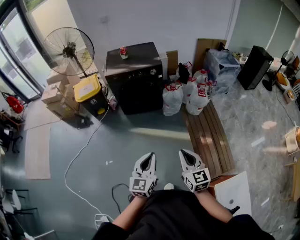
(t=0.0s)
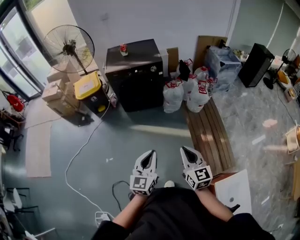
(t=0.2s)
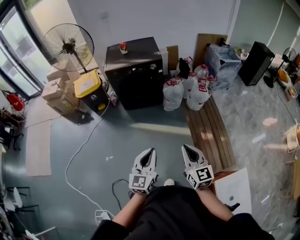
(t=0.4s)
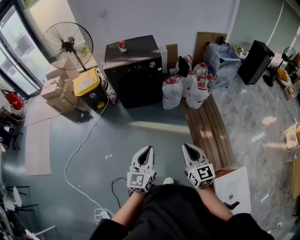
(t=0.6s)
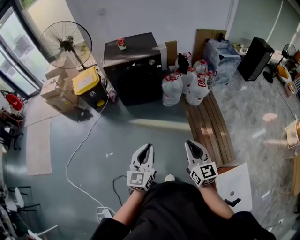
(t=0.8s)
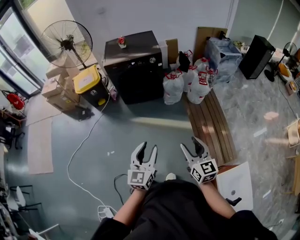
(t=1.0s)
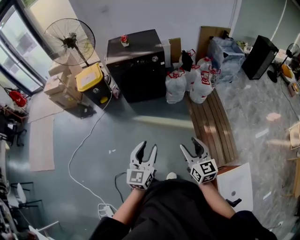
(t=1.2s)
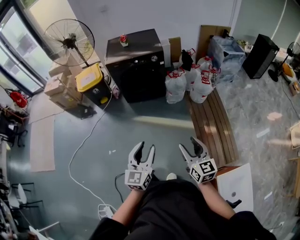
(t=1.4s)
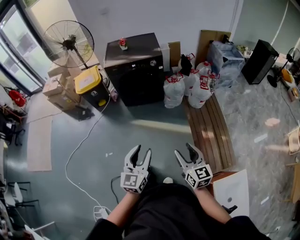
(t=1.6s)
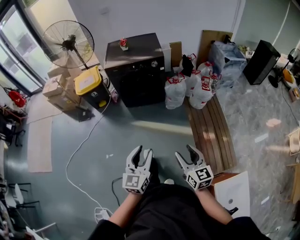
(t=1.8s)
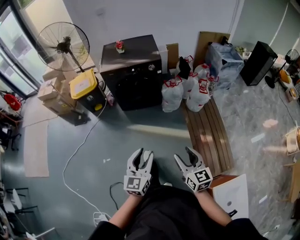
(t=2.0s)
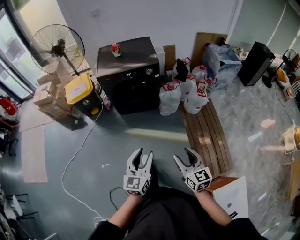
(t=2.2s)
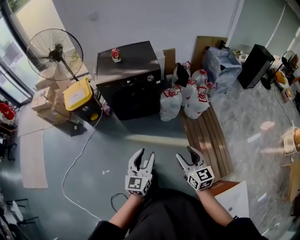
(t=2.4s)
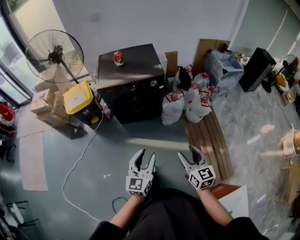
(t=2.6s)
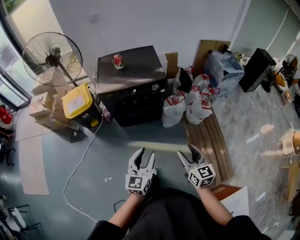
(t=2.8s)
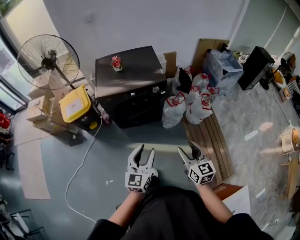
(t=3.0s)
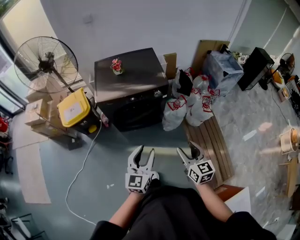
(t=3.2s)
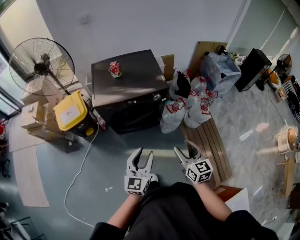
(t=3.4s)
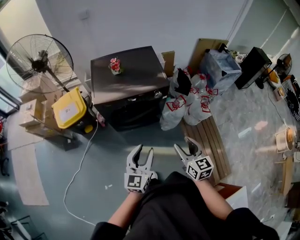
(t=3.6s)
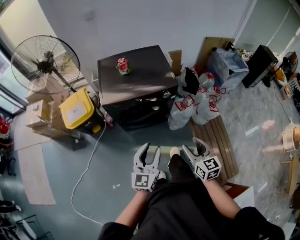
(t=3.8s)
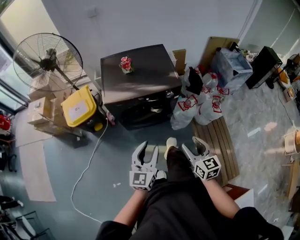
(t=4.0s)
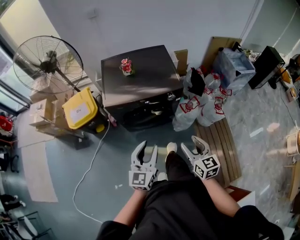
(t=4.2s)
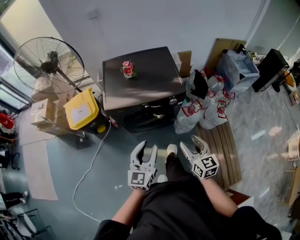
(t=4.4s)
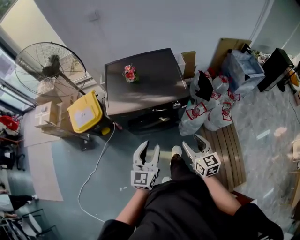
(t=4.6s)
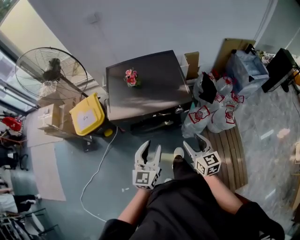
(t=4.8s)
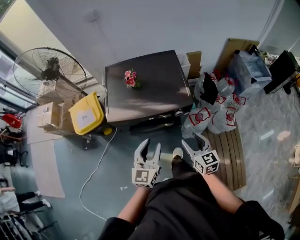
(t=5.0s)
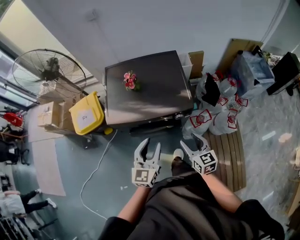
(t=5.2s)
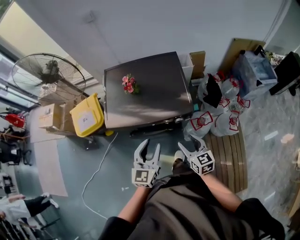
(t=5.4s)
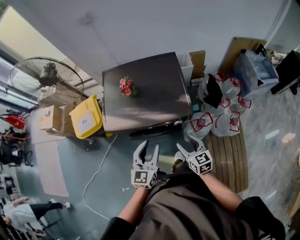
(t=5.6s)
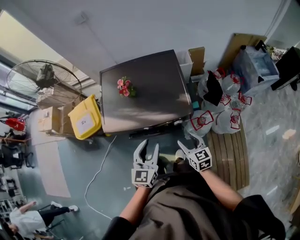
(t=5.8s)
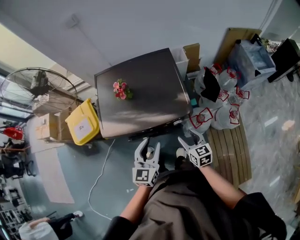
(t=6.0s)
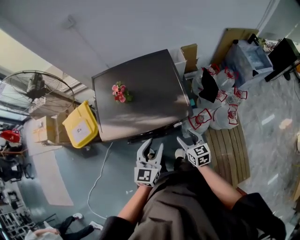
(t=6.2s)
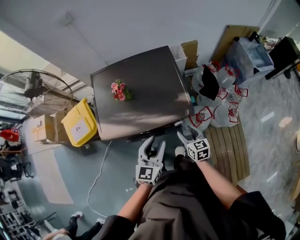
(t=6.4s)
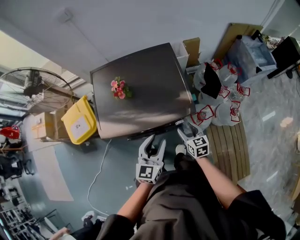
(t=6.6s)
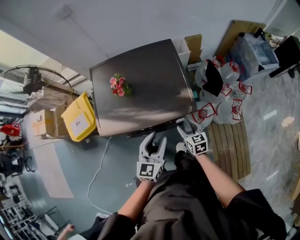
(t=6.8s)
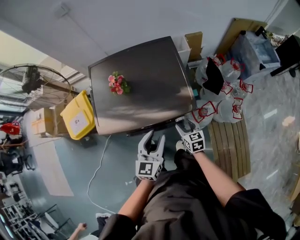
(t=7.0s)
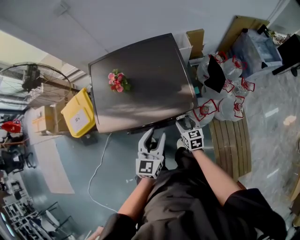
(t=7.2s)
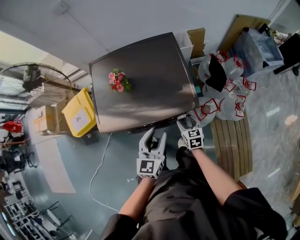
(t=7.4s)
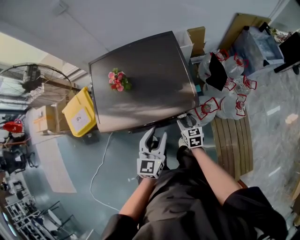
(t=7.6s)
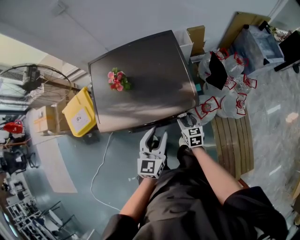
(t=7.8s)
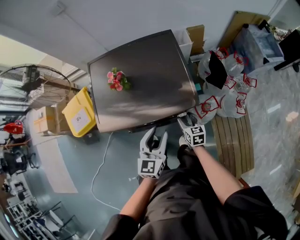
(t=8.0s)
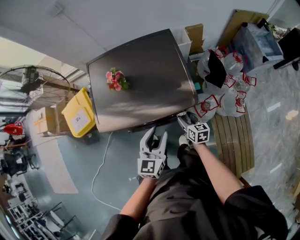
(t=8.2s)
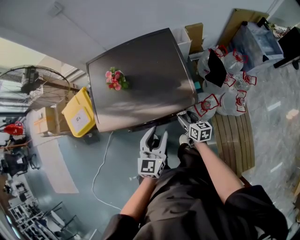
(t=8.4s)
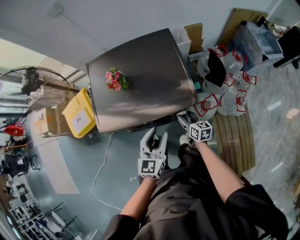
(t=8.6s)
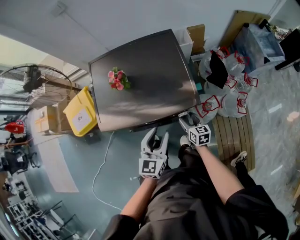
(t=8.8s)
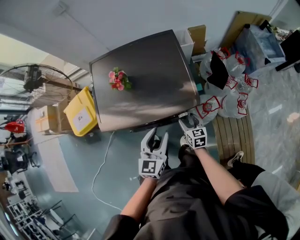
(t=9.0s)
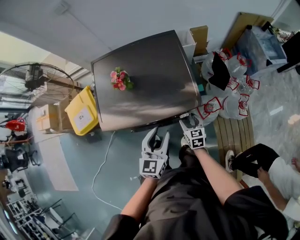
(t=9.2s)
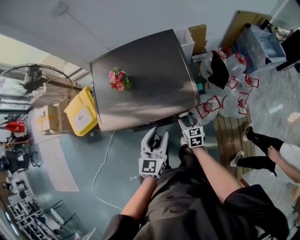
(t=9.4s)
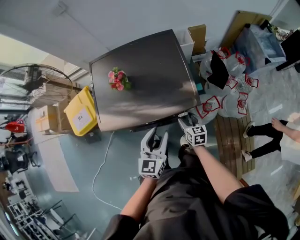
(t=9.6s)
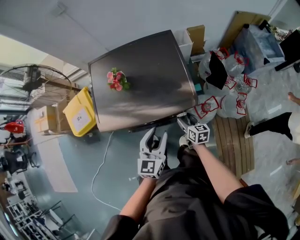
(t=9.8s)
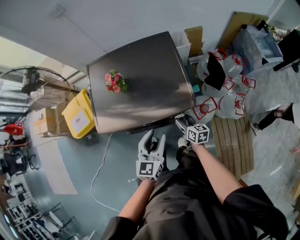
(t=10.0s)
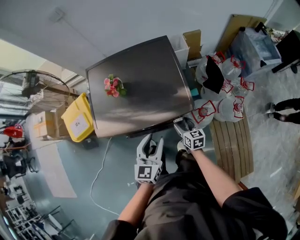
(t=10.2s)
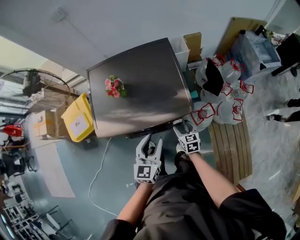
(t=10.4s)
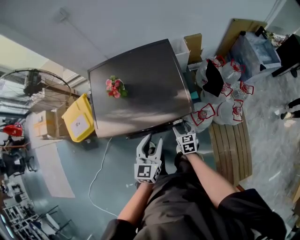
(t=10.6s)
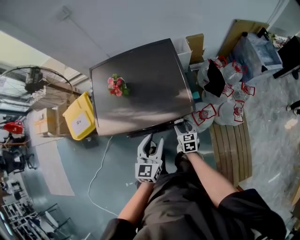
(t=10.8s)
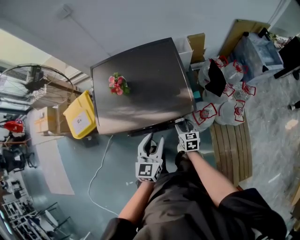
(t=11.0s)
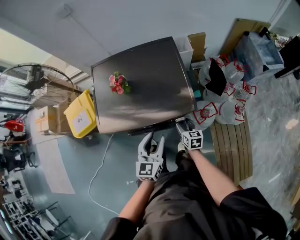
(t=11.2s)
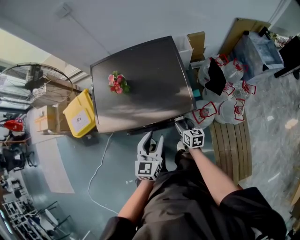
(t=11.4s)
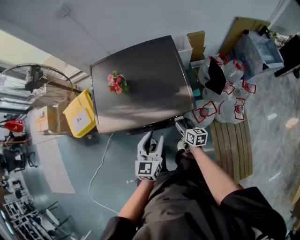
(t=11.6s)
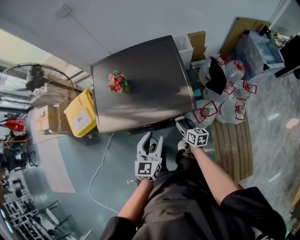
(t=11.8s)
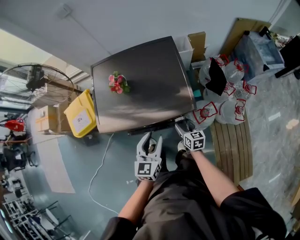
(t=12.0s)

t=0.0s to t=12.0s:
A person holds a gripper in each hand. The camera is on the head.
t=0.0s to t=1.6s: The left gripper opens. Meanwhile the right gripper opens its fingers.
t=1.6s to t=3.0s: Both grippers move forward, about 35 cm.
t=3.0s to t=4.4s: The left gripper travels forward and to the left by about 20 cm. Meanwhile the right gripper travels forward by approximately 20 cm.
t=4.4s to t=6.0s: The right gripper heads forward and downward, covering approximately 25 cm. Meanwhile the left gripper moves forward, about 20 cm.
t=6.0s to t=7.6s: The right gripper travels downward and forward by approximately 15 cm, while the left gripper goes about 5 cm downward.
t=9.0s to t=10.4s: The grippers move only a little.

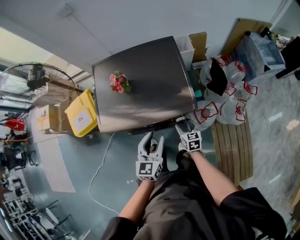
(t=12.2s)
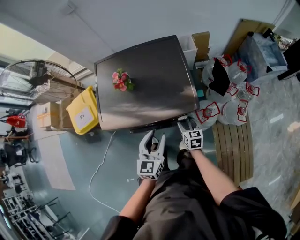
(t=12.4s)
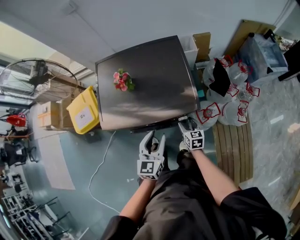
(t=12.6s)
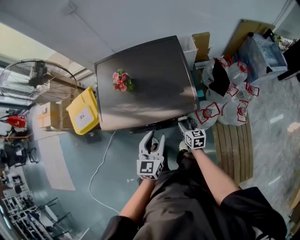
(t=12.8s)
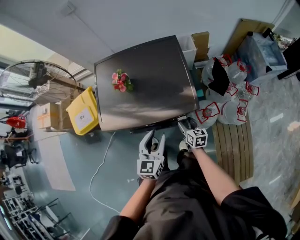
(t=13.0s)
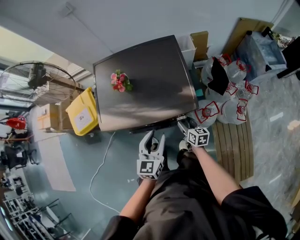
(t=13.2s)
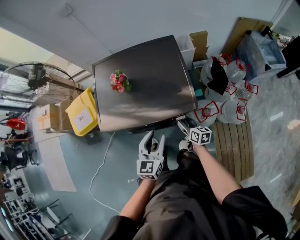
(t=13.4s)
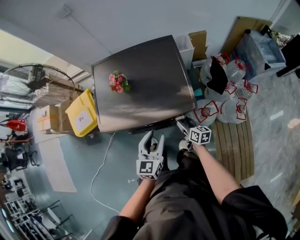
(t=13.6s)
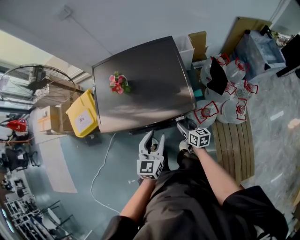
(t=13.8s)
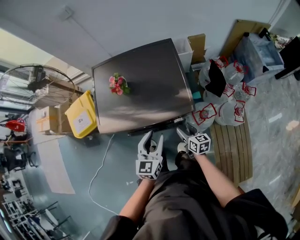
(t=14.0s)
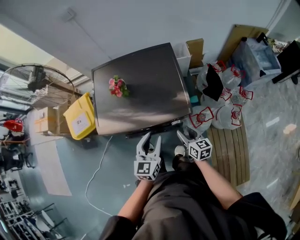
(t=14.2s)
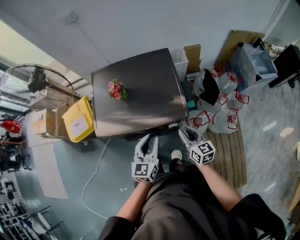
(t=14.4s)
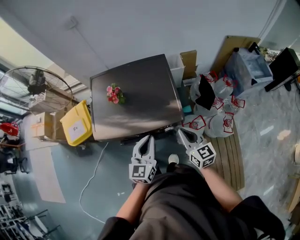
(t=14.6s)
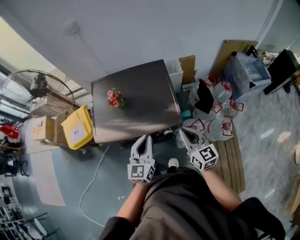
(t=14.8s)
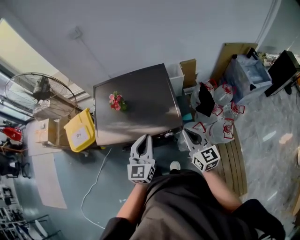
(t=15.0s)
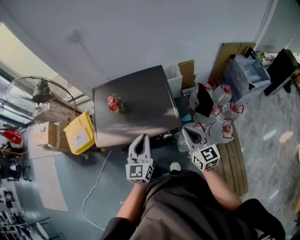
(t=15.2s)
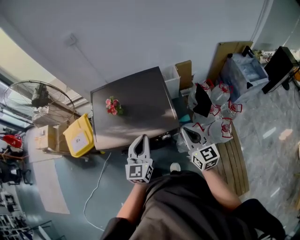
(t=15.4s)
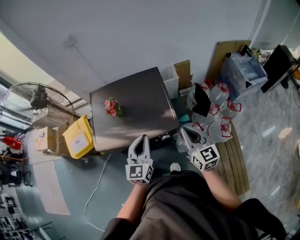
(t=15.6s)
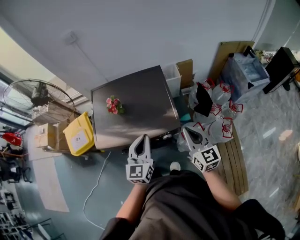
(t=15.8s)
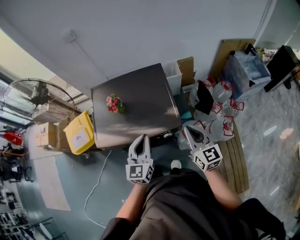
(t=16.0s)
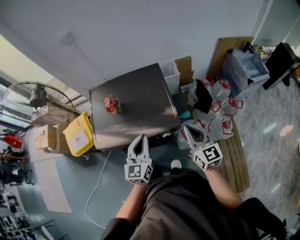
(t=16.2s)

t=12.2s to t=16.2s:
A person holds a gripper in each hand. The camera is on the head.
t=12.2s to t=13.6s: The right gripper rotates roughly 30 degrees.
t=13.6s to t=14.8s: The right gripper heads upward, covering roughly 30 cm, changes its angle by about 40 degrees, and closes; the left gripper travels upward by approximately 10 cm, and closes.
t=14.8s to t=16.2s: The right gripper ends up about 5 cm from where it was.

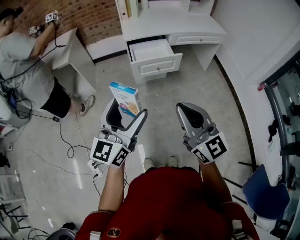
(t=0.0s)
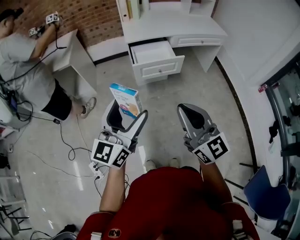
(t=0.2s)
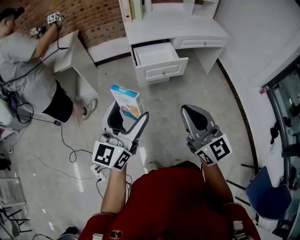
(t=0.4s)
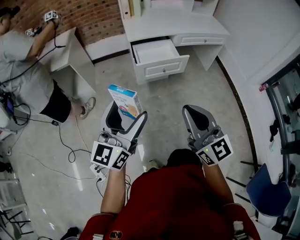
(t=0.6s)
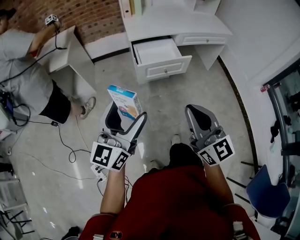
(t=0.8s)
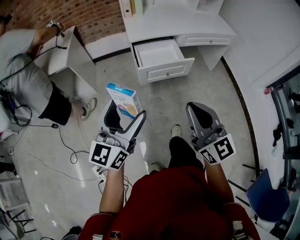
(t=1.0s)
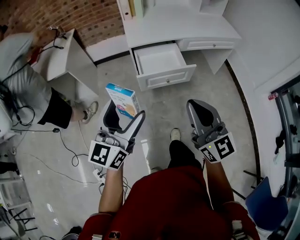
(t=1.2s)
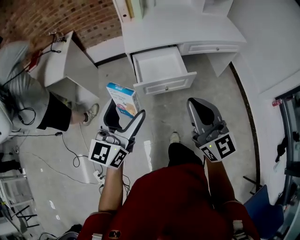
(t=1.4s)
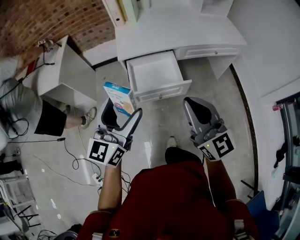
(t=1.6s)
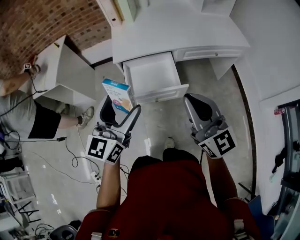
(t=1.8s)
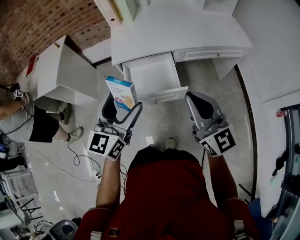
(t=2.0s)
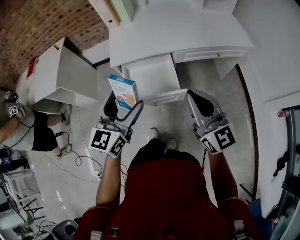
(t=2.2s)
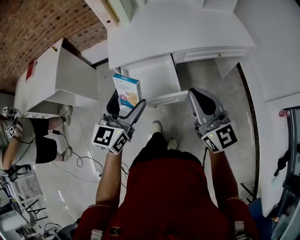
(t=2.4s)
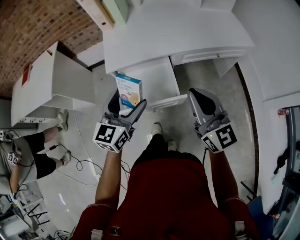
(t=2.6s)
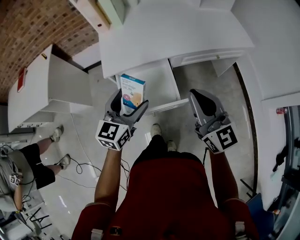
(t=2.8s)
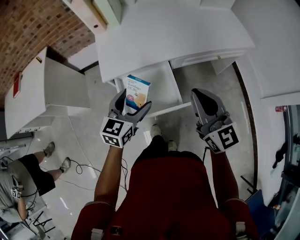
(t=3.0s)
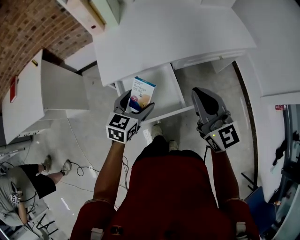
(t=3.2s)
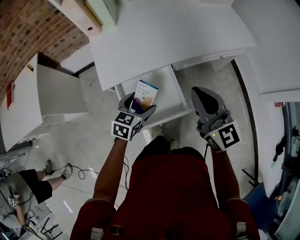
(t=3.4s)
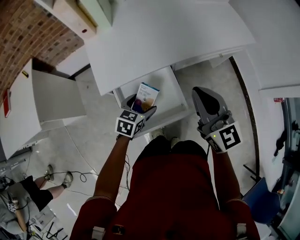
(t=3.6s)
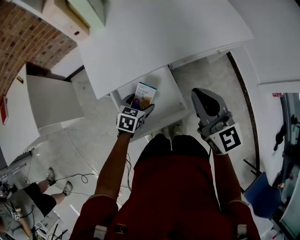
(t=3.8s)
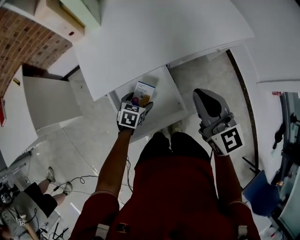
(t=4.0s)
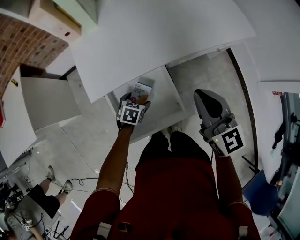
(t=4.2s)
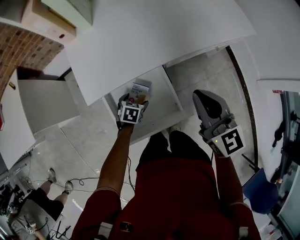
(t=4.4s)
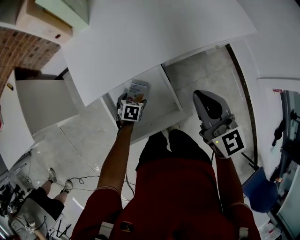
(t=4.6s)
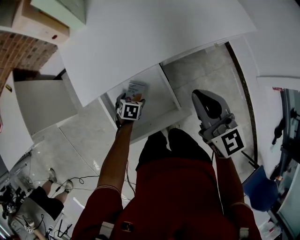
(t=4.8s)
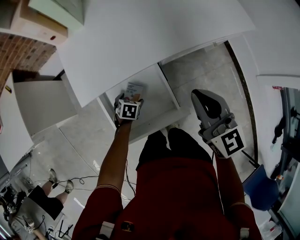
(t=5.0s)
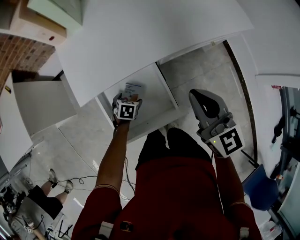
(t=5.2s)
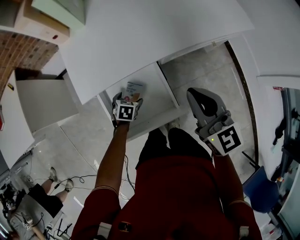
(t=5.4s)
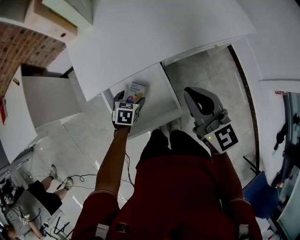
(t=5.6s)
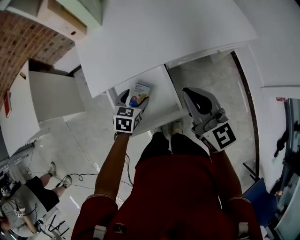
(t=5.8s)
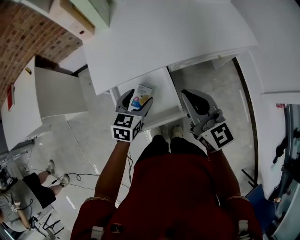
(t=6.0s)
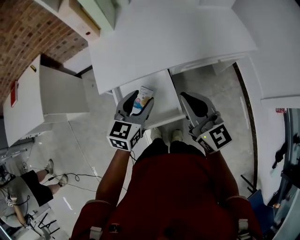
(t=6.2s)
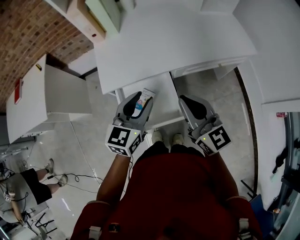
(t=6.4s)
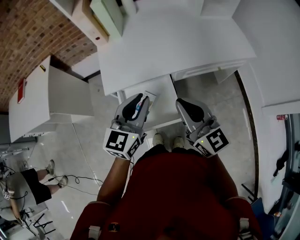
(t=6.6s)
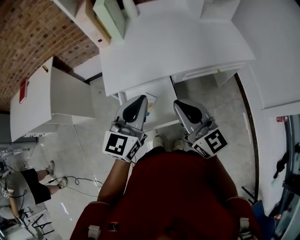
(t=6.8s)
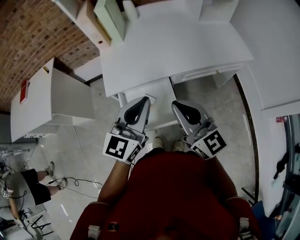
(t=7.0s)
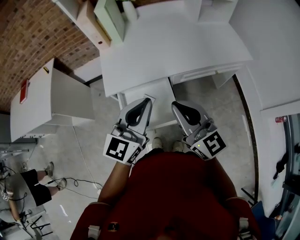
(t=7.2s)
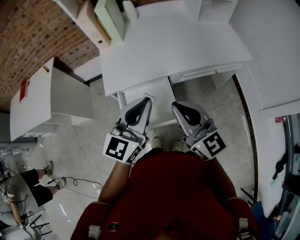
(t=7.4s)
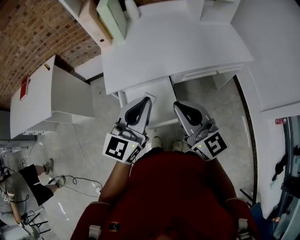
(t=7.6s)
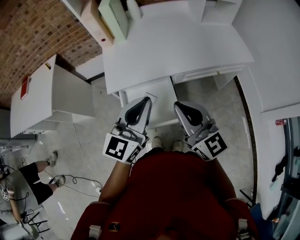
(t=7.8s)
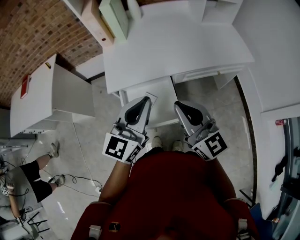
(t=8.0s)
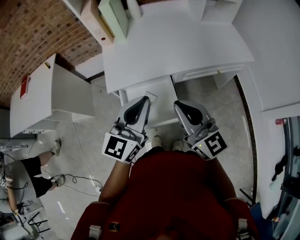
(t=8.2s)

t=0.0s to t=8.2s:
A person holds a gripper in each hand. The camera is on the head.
t=0.0s to t=1.6s: The two grippers go approximately 30 cm forward.
t=1.6s to t=3.2s: The left gripper goes some 35 cm forward and downward, and points its fingers about 30 degrees further downward. Meanwhile the right gripper travels forward by about 25 cm.
t=3.2s to t=5.0s: The left gripper travels downward by some 30 cm, and angles its fingers downward, by approximately 40 degrees. The right gripper shifts some 10 cm forward and downward.
t=5.0s to t=6.6s: The right gripper travels backward and upward by about 10 cm, and swivels some 20 degrees. Meanwhile the left gripper goes approximately 40 cm upward, tips its fingers upward by about 60 degrees, and closes its fingers.
t=6.6s to t=8.2s: The left gripper goes roughly 5 cm upward.
